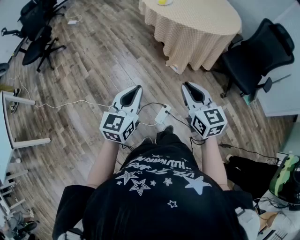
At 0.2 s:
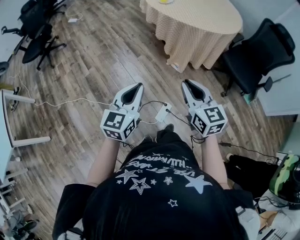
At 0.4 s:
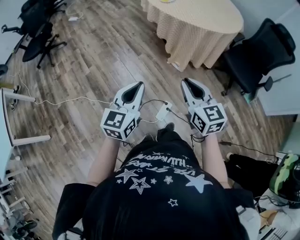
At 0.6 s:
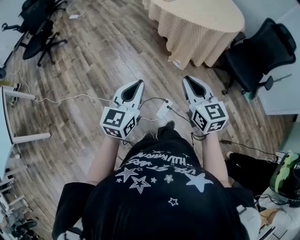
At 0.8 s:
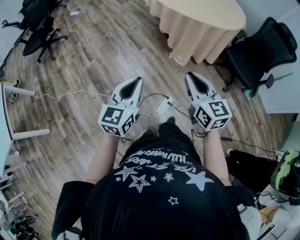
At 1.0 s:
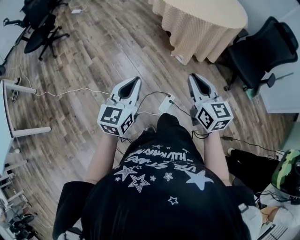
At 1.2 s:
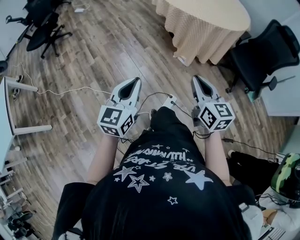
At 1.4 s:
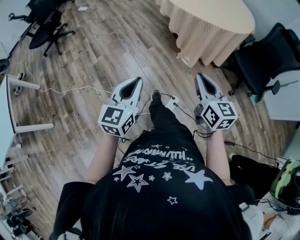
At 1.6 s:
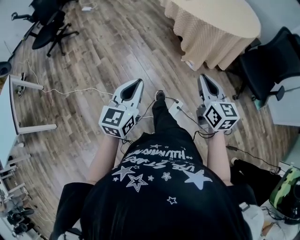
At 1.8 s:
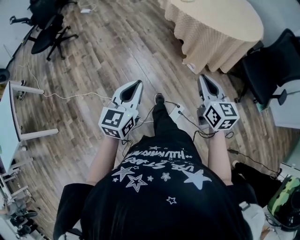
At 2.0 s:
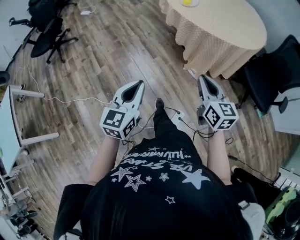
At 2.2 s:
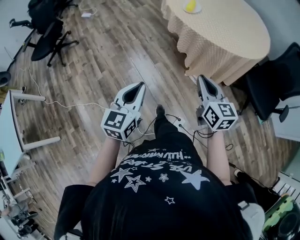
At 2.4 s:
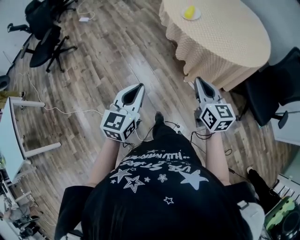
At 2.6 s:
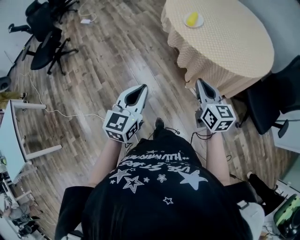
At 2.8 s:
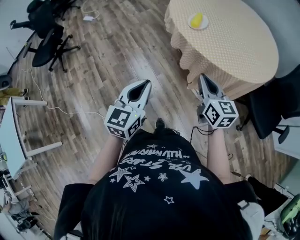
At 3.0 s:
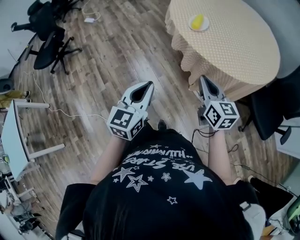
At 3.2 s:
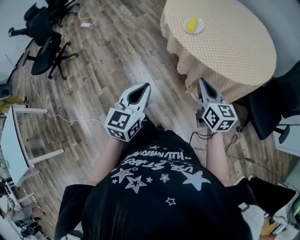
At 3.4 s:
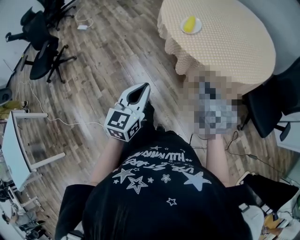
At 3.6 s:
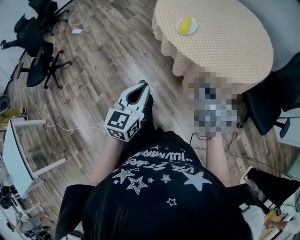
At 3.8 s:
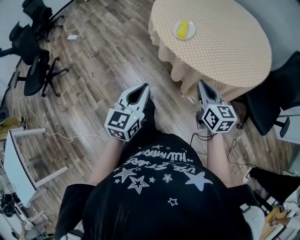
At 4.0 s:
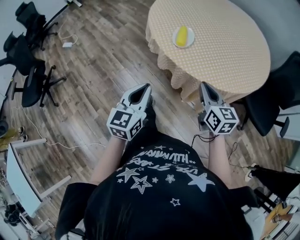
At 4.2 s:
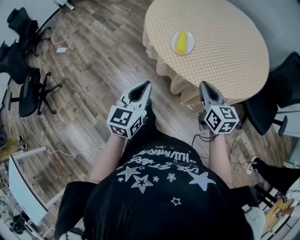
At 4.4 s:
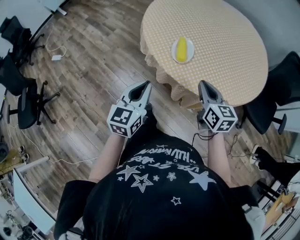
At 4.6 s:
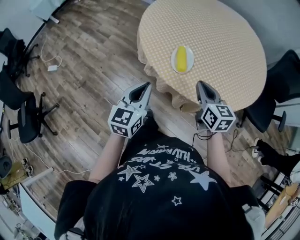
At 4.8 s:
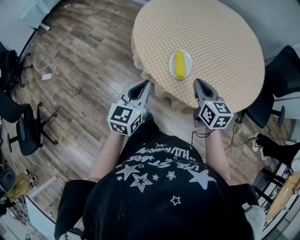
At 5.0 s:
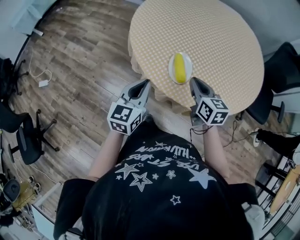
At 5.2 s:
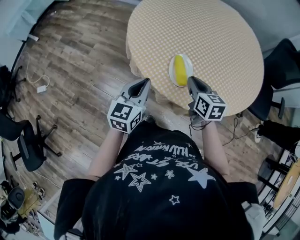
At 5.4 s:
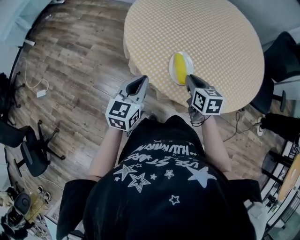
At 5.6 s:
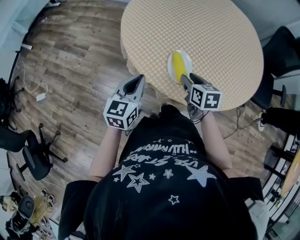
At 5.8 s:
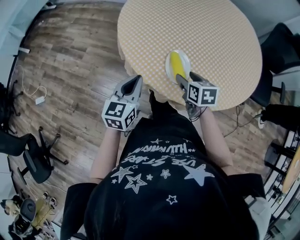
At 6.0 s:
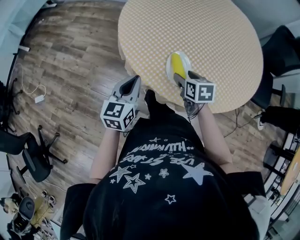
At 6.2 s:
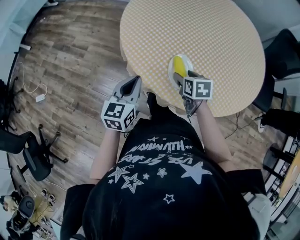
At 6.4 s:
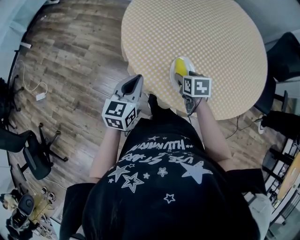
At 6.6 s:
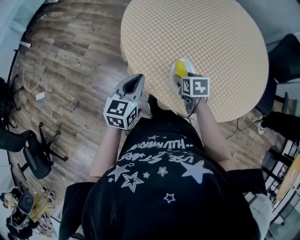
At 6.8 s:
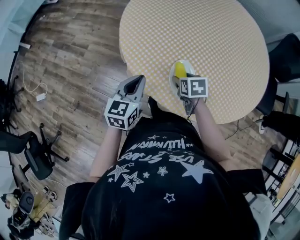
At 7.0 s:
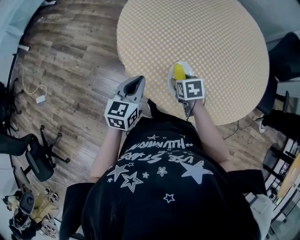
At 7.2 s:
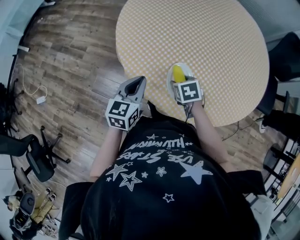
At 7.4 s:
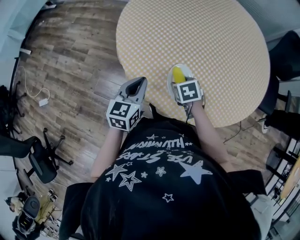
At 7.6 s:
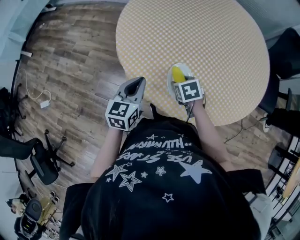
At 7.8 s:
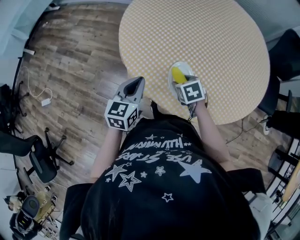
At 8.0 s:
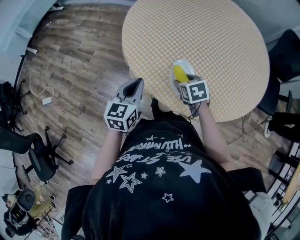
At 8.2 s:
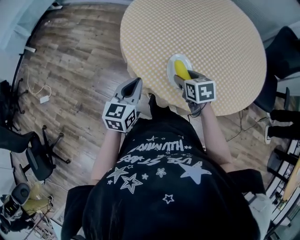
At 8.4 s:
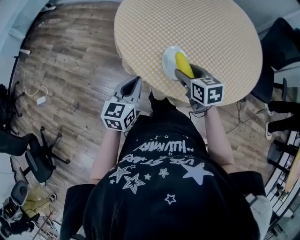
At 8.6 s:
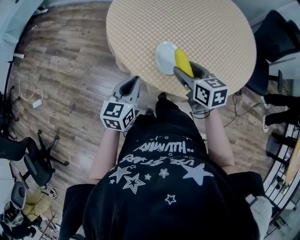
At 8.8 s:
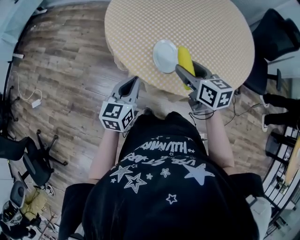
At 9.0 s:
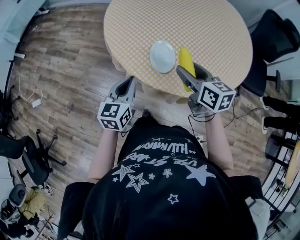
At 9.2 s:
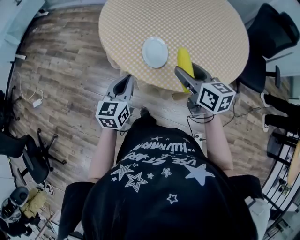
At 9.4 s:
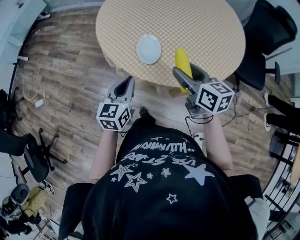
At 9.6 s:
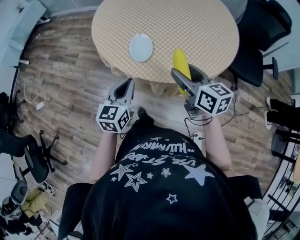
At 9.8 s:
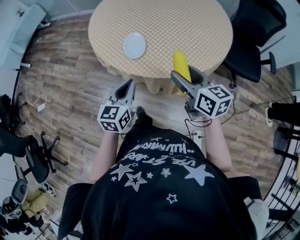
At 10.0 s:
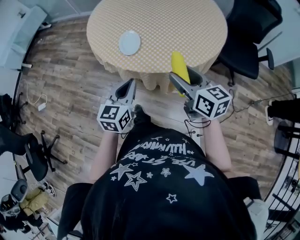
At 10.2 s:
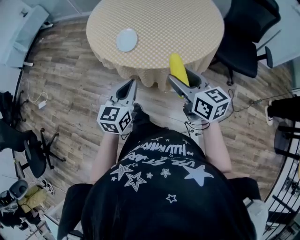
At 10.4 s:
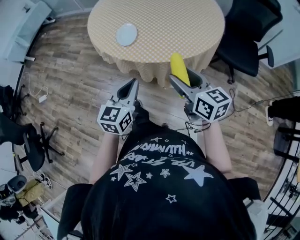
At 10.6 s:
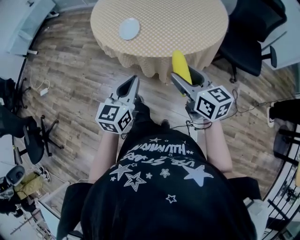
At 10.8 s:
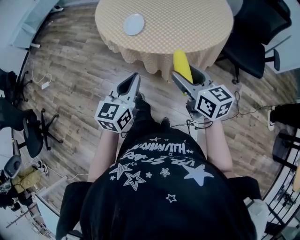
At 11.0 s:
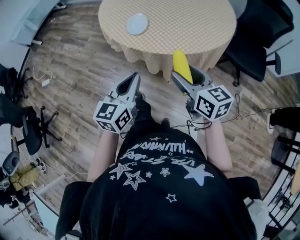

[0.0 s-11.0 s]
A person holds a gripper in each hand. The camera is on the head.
0.0 to 1.6 s: The right gripper shifts by roughly 5 cm, while the left gripper heads to the left, covering approximately 10 cm.
1.6 to 3.2 s: The two grippers go roughly 40 cm forward.
3.2 to 4.8 s: Both grippers travel together forward, some 35 cm. The left gripper rotates approximately 20 degrees. Meanwhile the right gripper turns by approximately 20 degrees.
4.8 to 6.2 s: The right gripper shifts about 15 cm downward and forward, changes its angle by some 30 degrees, and opens; the left gripper heads forward, covering some 10 cm.
7.8 to 9.4 s: The left gripper is displaced backward and to the right by roughly 20 cm. Meanwhile the right gripper goes about 25 cm upward, backward and to the right, and points its fingers roughly 40 degrees further upward.
9.4 to 11.0 s: The right gripper moves backward, some 20 cm. The left gripper travels backward and to the right by some 25 cm.

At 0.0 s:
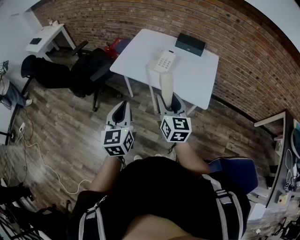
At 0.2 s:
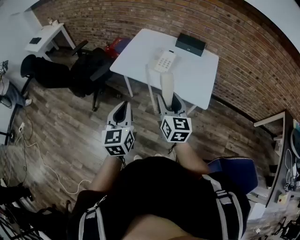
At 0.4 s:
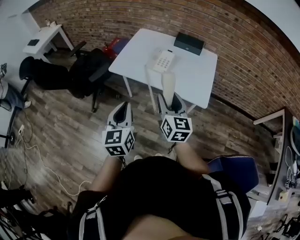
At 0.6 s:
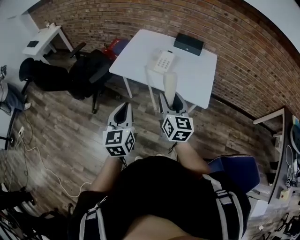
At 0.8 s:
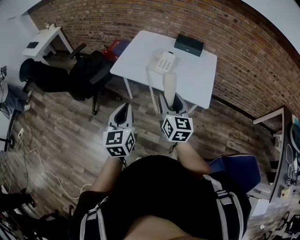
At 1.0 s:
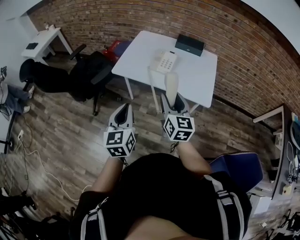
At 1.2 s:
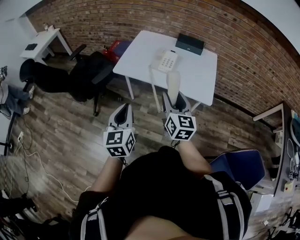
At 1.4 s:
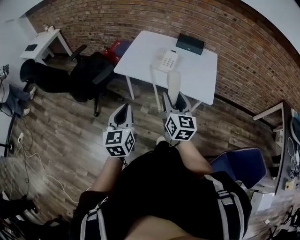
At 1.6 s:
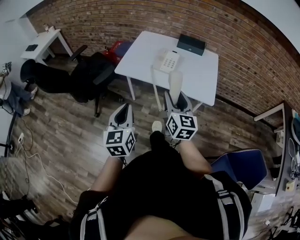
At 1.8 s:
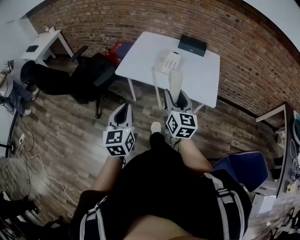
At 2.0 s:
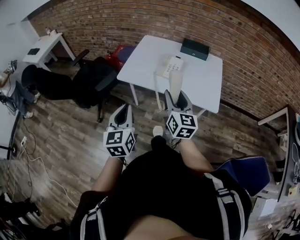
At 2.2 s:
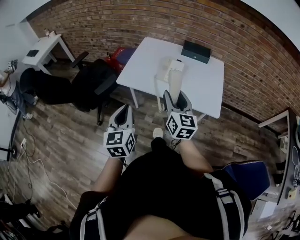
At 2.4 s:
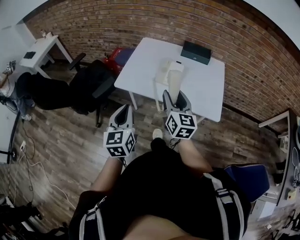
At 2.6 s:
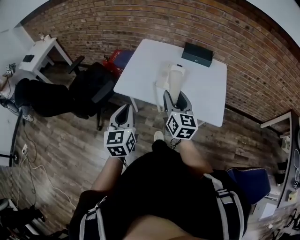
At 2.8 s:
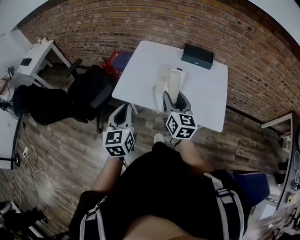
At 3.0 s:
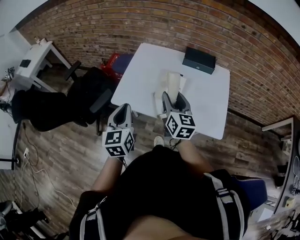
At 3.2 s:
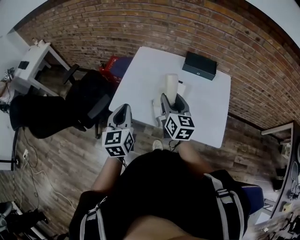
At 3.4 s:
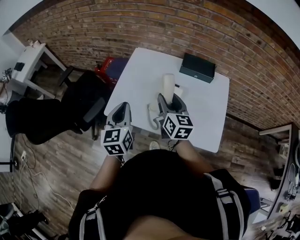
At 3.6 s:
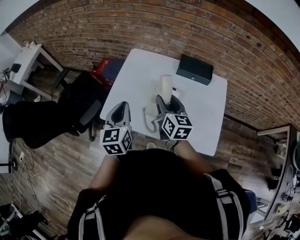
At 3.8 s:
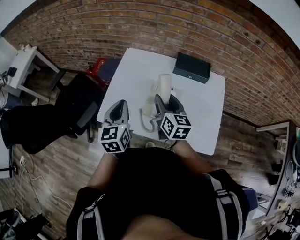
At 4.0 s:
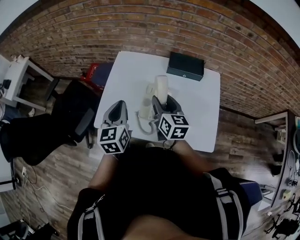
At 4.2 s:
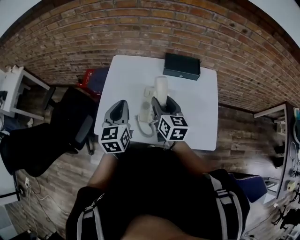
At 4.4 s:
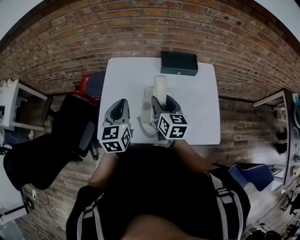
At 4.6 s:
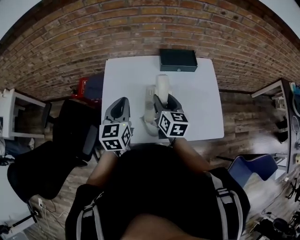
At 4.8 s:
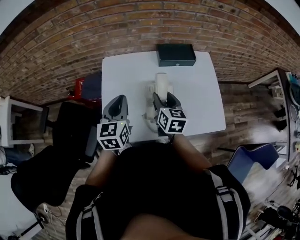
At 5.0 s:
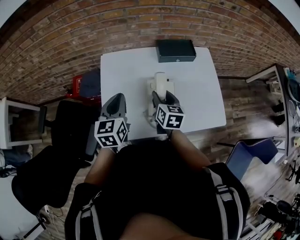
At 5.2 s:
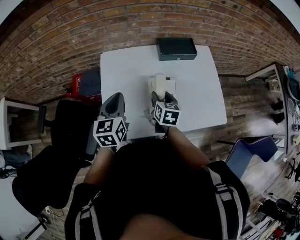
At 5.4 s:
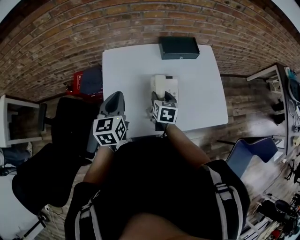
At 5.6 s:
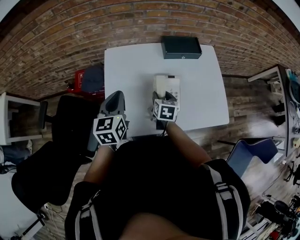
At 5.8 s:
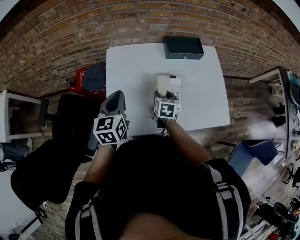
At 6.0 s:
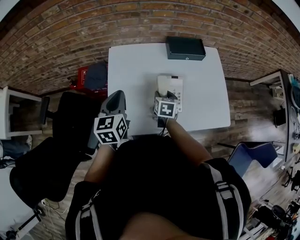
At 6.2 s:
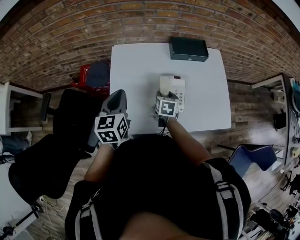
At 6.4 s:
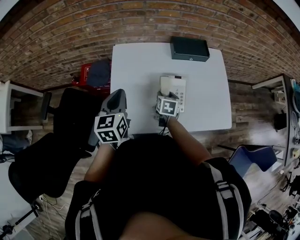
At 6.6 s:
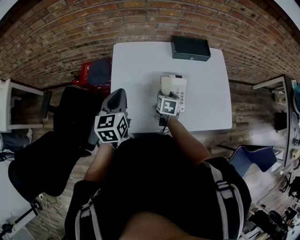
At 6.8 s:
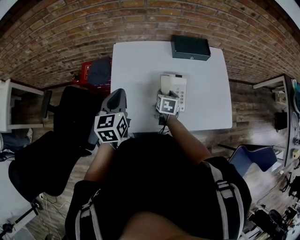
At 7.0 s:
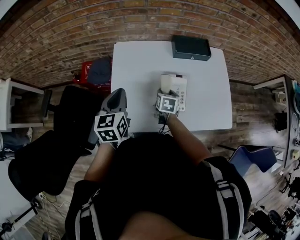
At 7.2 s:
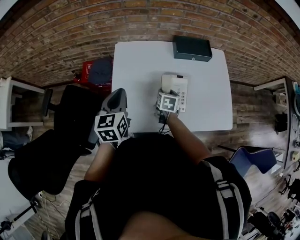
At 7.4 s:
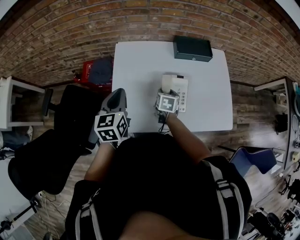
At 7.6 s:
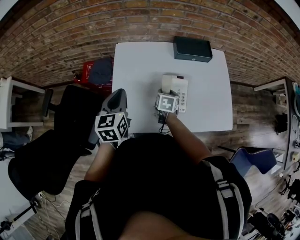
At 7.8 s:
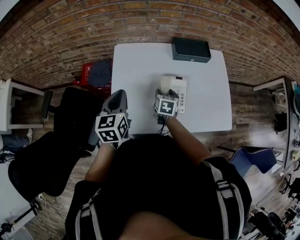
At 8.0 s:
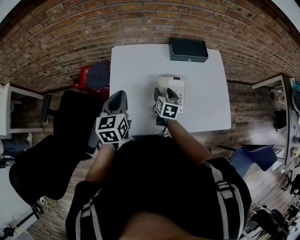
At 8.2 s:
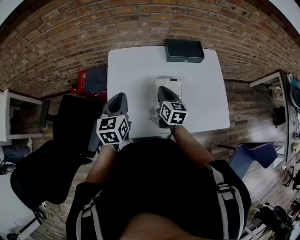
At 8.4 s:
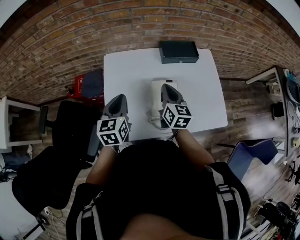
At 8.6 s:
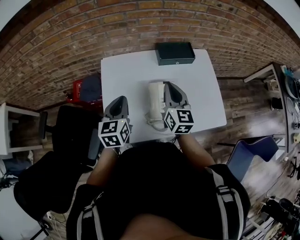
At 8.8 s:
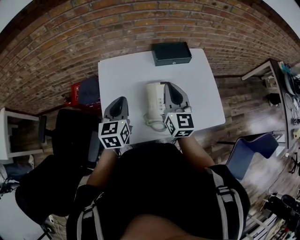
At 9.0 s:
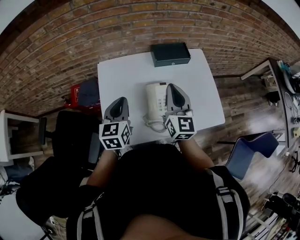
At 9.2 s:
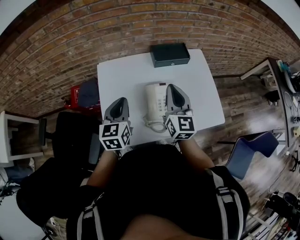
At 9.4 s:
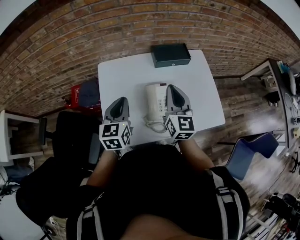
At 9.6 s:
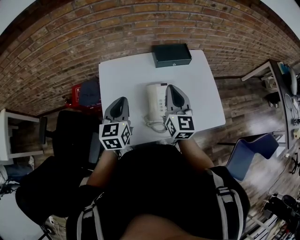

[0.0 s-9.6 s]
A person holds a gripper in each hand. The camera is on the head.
0.0 to 1.6 s: The left gripper is displaced to the left by approximately 10 cm.
1.6 to 3.2 s: Both grippers move forward, some 35 cm.
3.2 to 4.8 s: The right gripper moves forward and downward, approximately 15 cm, and turns by about 30 degrees. Meanwhile the left gripper goes some 20 cm forward, and swivels roughly 30 degrees.
4.8 to 6.4 s: The left gripper moves to the left, approximately 10 cm; the right gripper heads downward, covering about 15 cm, and changes its angle by approximately 30 degrees.
6.4 to 8.0 s: There are only small adjustments of the grippers.
8.0 to 9.6 s: The right gripper moves upward, roughly 20 cm, tips its fingers upward by about 30 degrees, and closes up. Meanwhile the left gripper heads to the right, covering approximately 5 cm.

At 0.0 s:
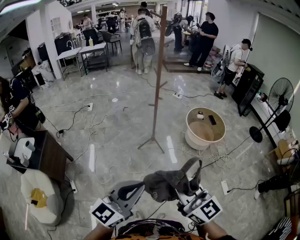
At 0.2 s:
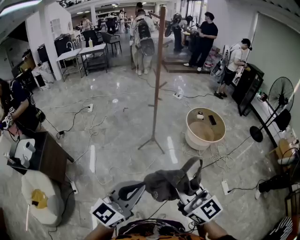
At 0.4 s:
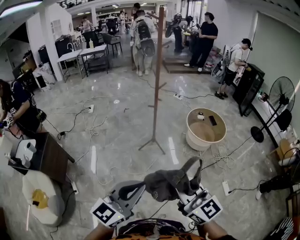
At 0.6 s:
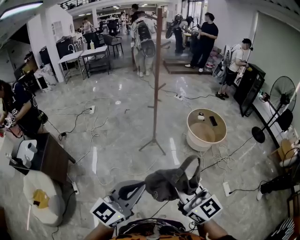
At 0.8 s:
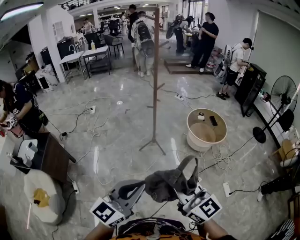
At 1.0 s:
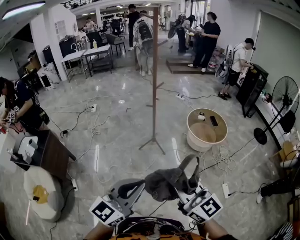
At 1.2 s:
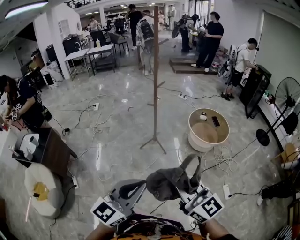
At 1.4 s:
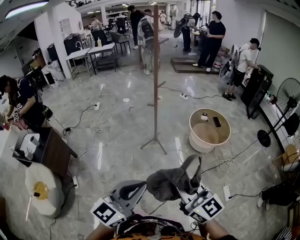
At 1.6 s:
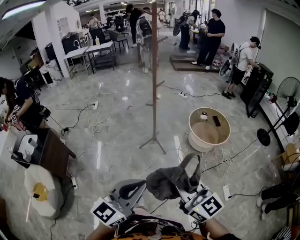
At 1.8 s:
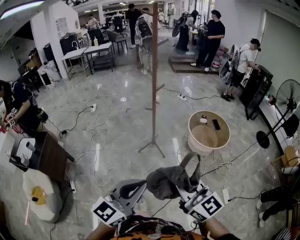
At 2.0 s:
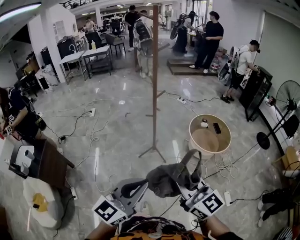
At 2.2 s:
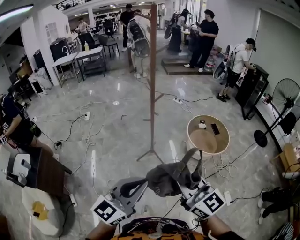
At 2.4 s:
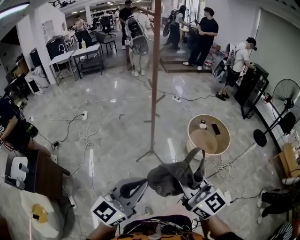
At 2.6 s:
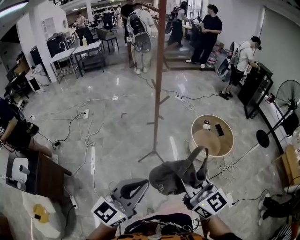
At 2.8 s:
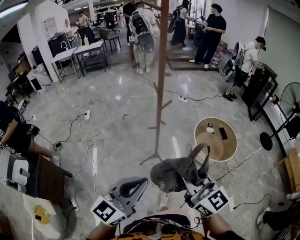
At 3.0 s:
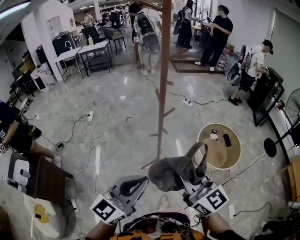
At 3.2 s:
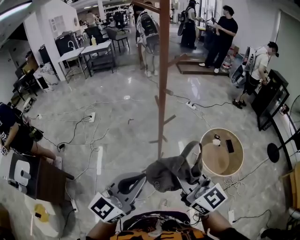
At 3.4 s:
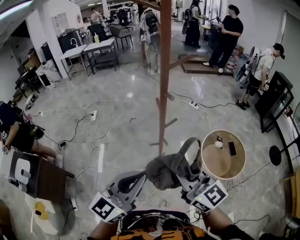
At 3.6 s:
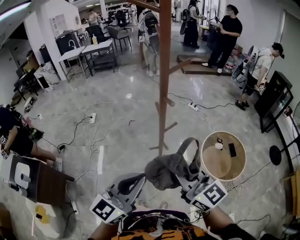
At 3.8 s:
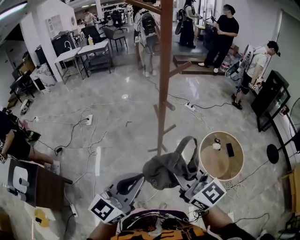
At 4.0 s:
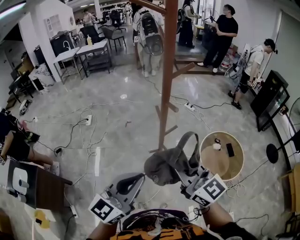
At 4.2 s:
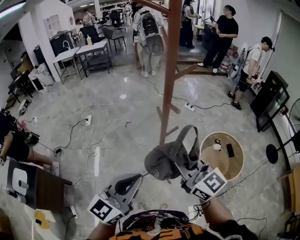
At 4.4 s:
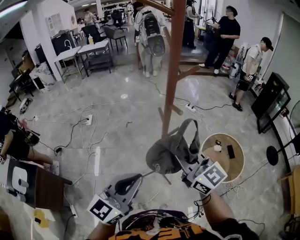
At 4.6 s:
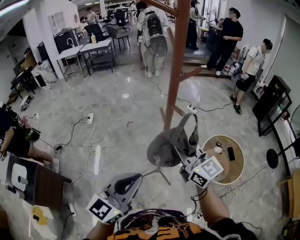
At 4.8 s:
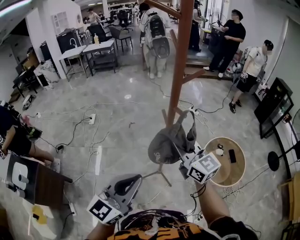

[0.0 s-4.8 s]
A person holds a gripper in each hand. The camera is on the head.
0.0 to 1.6 s: The two grippers go roughly 10 cm to the right.
1.6 to 3.2 s: Both grippers are carried forward, about 50 cm.
3.2 to 4.8 s: The right gripper goes roughly 20 cm forward; the left gripper goes some 10 cm forward.
